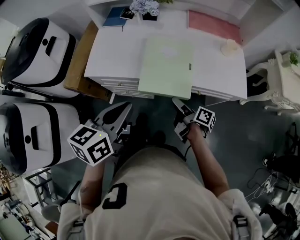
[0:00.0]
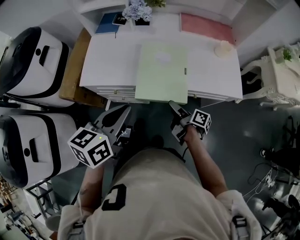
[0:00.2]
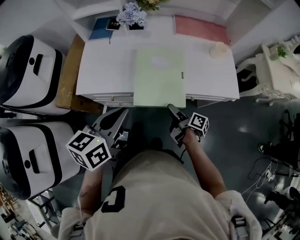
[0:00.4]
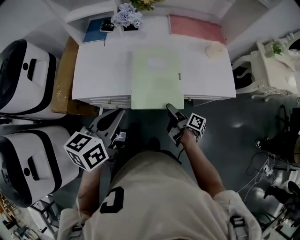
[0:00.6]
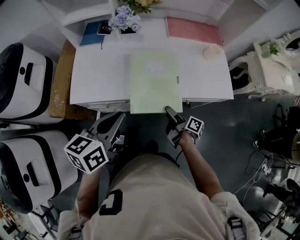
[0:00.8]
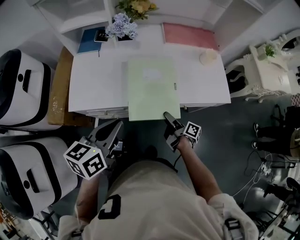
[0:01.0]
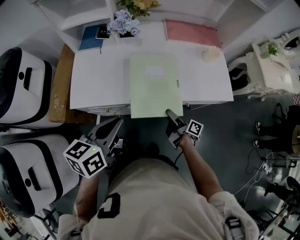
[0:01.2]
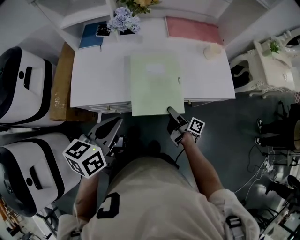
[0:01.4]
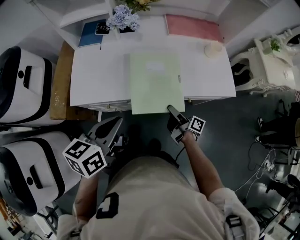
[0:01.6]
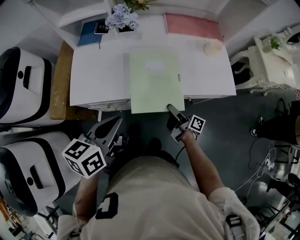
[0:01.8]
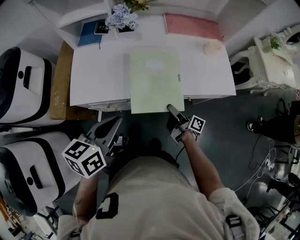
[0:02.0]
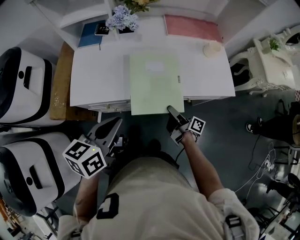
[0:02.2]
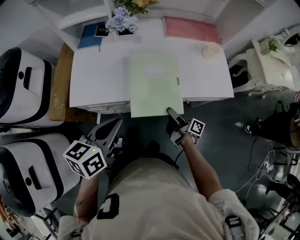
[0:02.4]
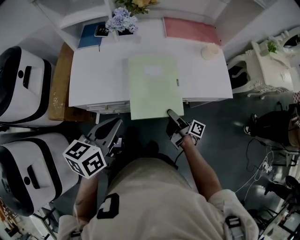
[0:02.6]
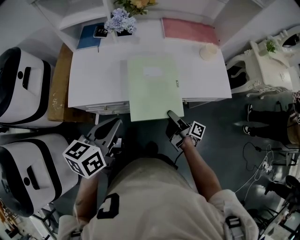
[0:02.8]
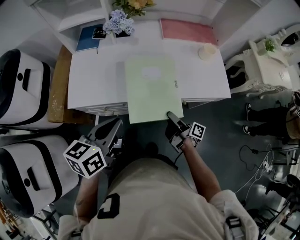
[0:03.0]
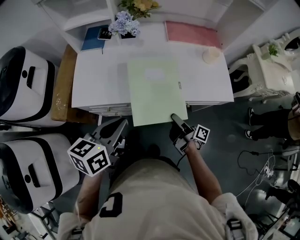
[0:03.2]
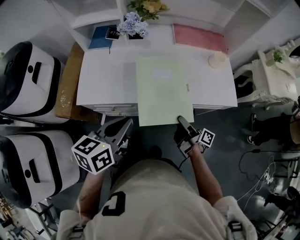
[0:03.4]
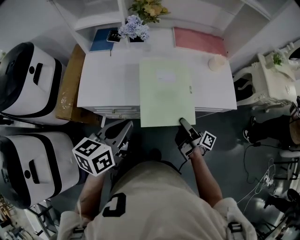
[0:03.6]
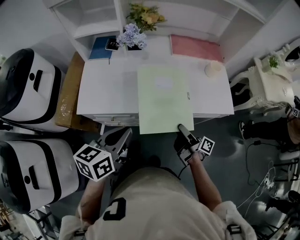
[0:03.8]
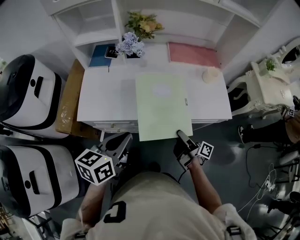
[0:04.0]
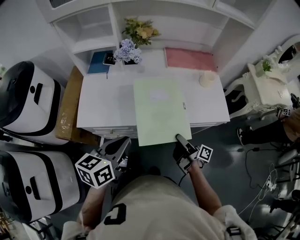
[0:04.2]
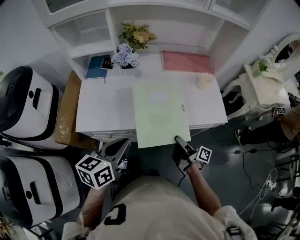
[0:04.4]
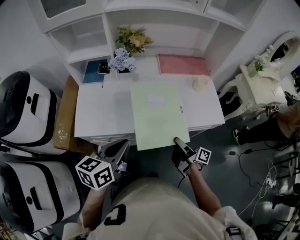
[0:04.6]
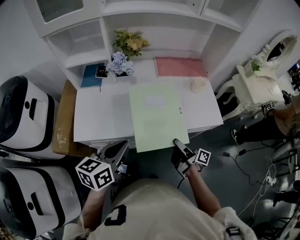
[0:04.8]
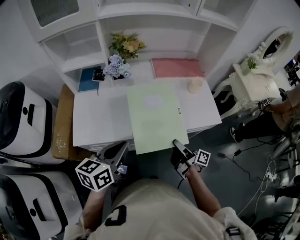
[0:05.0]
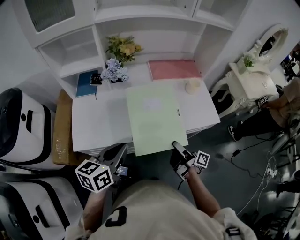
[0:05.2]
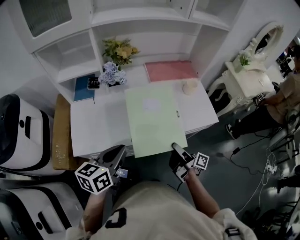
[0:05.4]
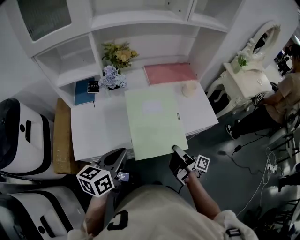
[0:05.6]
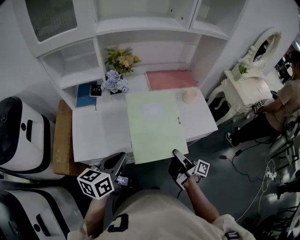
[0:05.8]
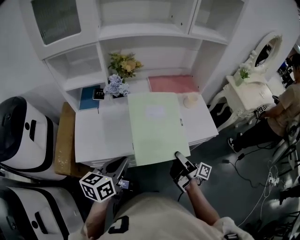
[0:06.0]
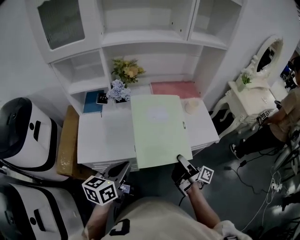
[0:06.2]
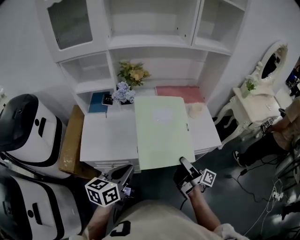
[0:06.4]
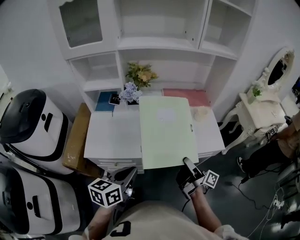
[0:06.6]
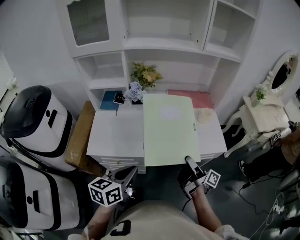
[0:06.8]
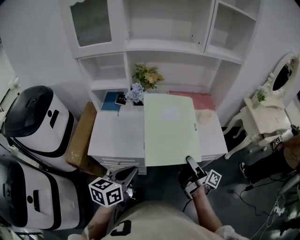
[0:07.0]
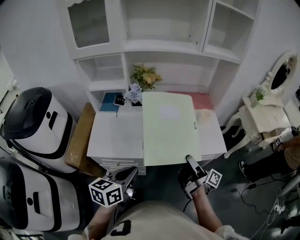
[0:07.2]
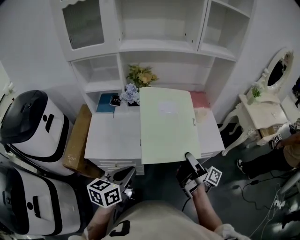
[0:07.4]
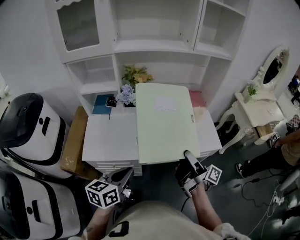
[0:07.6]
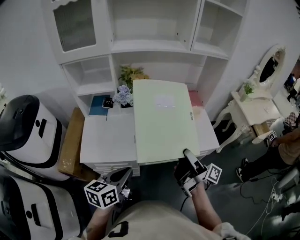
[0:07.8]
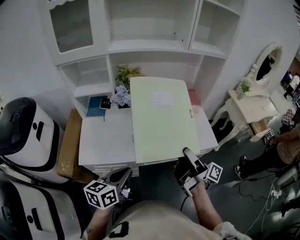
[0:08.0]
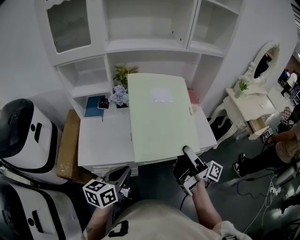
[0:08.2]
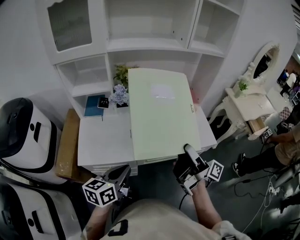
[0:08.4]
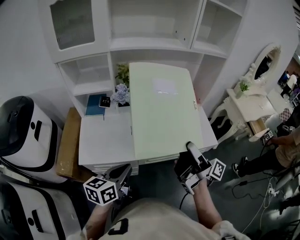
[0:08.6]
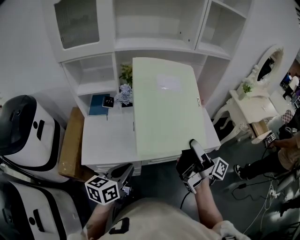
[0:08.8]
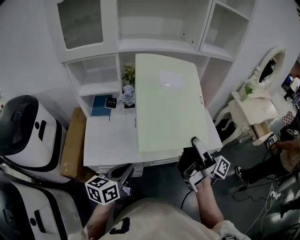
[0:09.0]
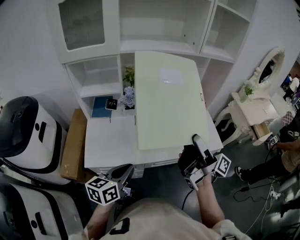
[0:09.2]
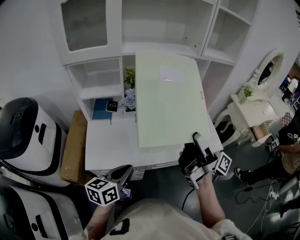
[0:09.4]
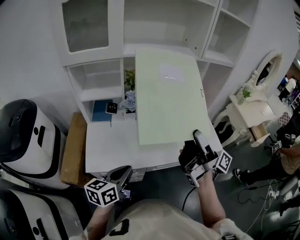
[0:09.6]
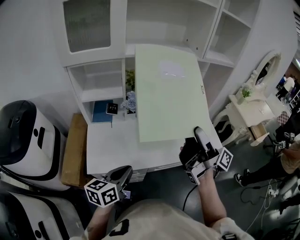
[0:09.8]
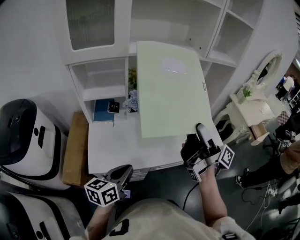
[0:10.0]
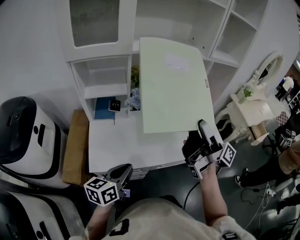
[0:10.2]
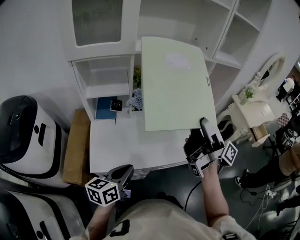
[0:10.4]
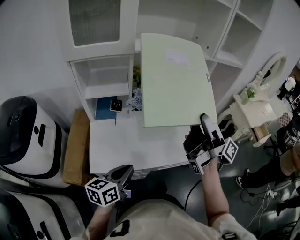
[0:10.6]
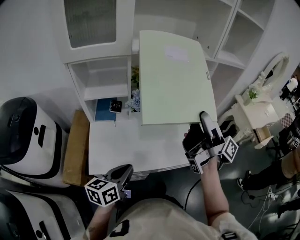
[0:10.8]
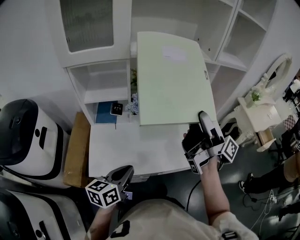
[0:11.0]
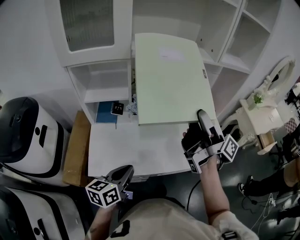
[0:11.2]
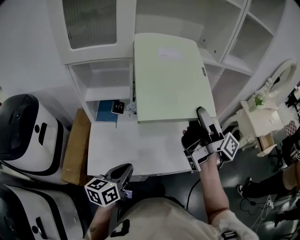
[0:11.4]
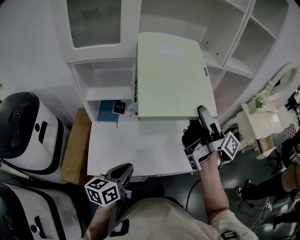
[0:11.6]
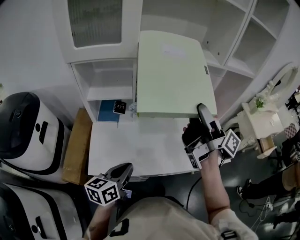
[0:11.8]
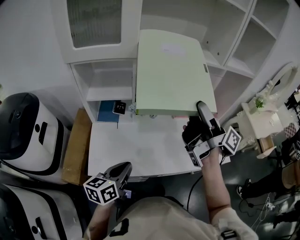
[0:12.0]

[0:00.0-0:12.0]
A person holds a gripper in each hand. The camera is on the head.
0:00.0 to 0:01.6: The right gripper ends up approximately 5 cm from where it was. The left gripper heads forward, covering about 5 cm.
0:01.6 to 0:03.0: The grippers stay close to where they were, moving slightly.
0:03.0 to 0:04.4: The right gripper moves upward, some 5 cm.
0:04.4 to 0:06.0: The right gripper travels upward by approximately 10 cm.
0:06.0 to 0:07.6: The right gripper shifts roughly 10 cm upward.
0:07.6 to 0:09.0: The left gripper changes place by approximately 5 cm, while the right gripper moves upward, about 10 cm.
0:09.0 to 0:10.4: The left gripper heads to the left, covering approximately 10 cm, while the right gripper heads forward, to the left and upward, covering roughly 10 cm.
0:10.4 to 0:12.0: The left gripper travels forward by approximately 5 cm. Meanwhile the right gripper goes about 10 cm forward.

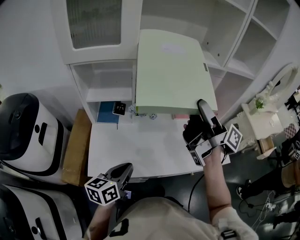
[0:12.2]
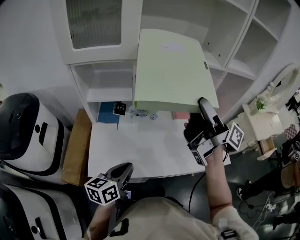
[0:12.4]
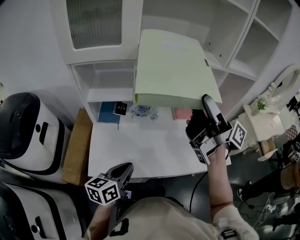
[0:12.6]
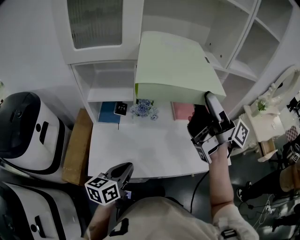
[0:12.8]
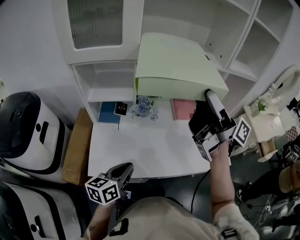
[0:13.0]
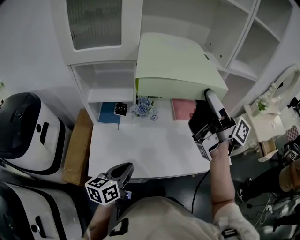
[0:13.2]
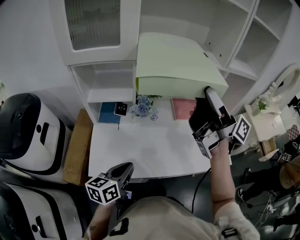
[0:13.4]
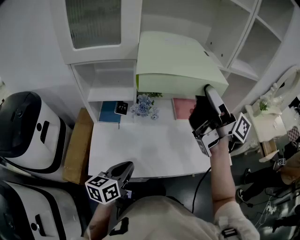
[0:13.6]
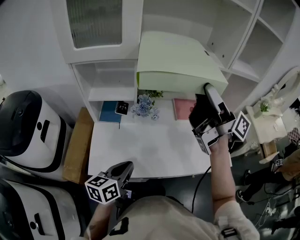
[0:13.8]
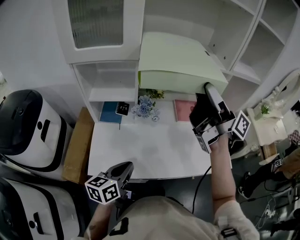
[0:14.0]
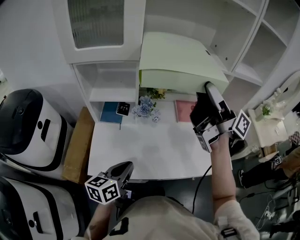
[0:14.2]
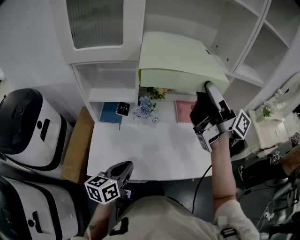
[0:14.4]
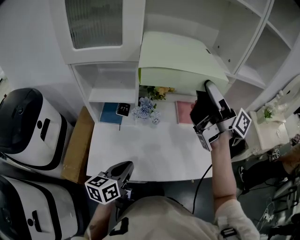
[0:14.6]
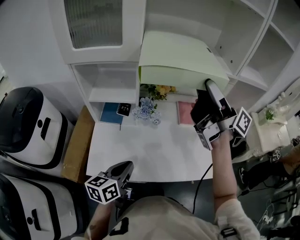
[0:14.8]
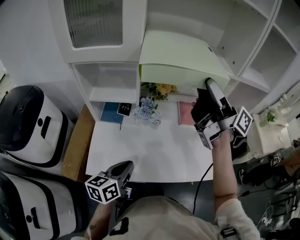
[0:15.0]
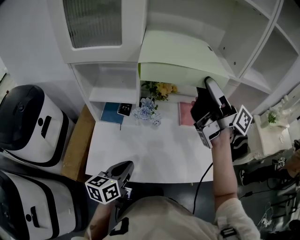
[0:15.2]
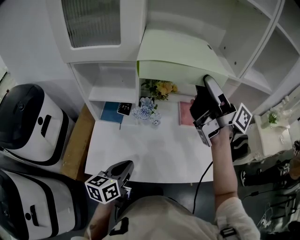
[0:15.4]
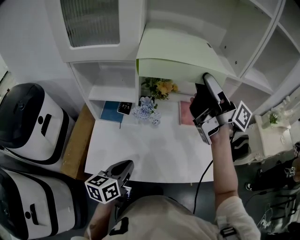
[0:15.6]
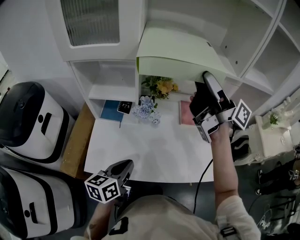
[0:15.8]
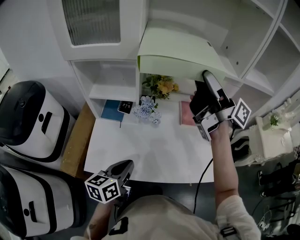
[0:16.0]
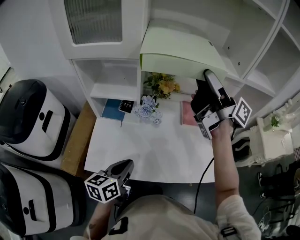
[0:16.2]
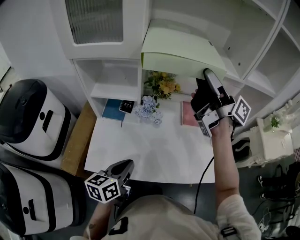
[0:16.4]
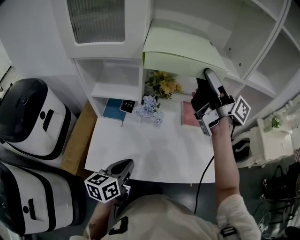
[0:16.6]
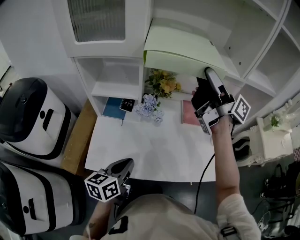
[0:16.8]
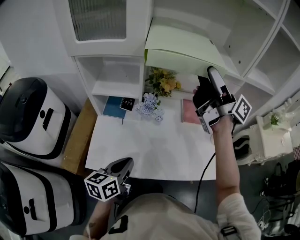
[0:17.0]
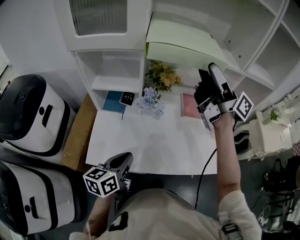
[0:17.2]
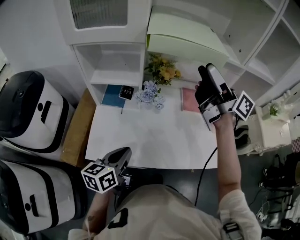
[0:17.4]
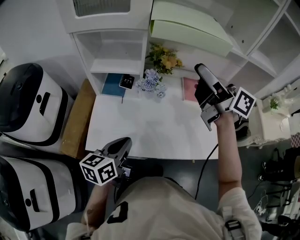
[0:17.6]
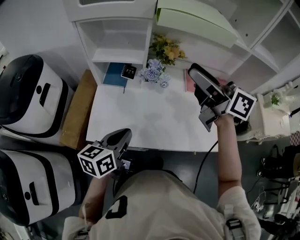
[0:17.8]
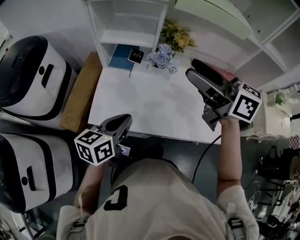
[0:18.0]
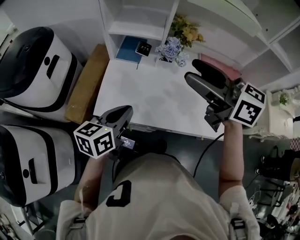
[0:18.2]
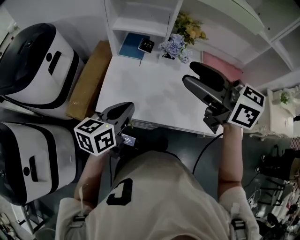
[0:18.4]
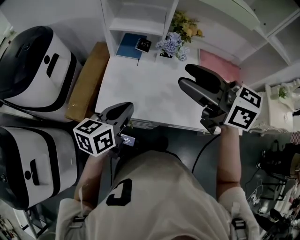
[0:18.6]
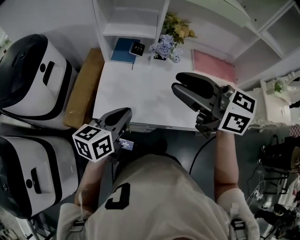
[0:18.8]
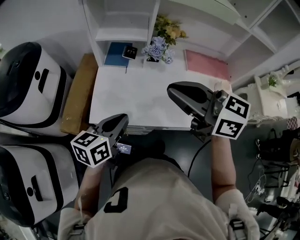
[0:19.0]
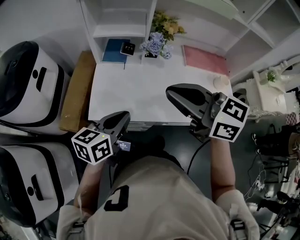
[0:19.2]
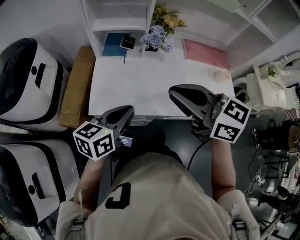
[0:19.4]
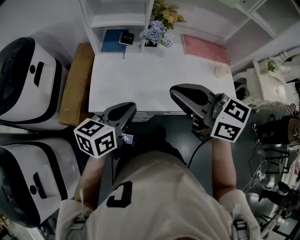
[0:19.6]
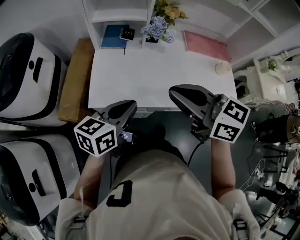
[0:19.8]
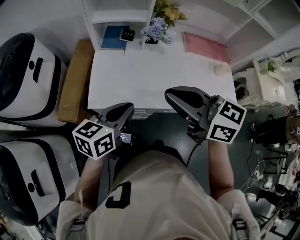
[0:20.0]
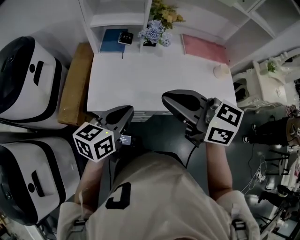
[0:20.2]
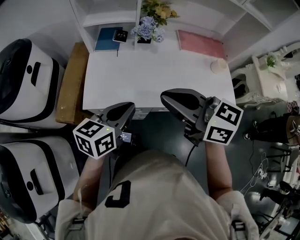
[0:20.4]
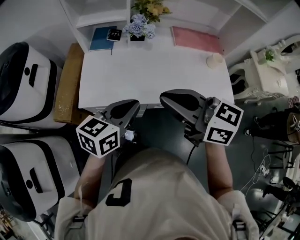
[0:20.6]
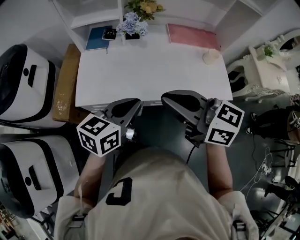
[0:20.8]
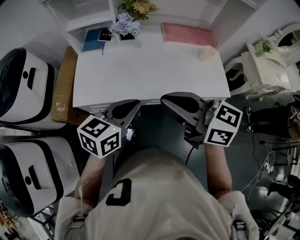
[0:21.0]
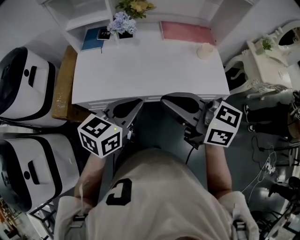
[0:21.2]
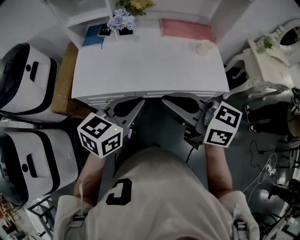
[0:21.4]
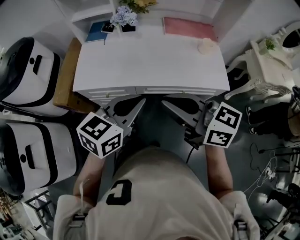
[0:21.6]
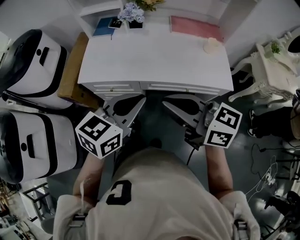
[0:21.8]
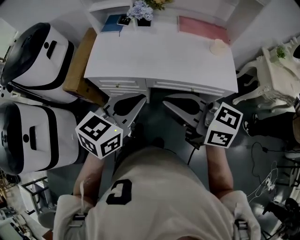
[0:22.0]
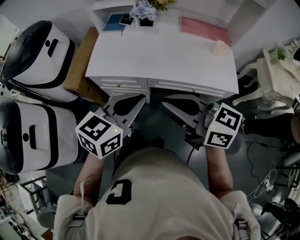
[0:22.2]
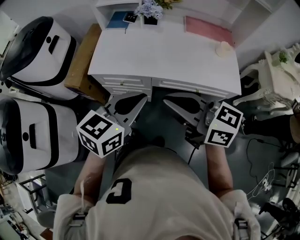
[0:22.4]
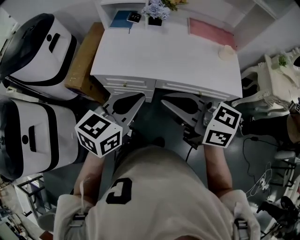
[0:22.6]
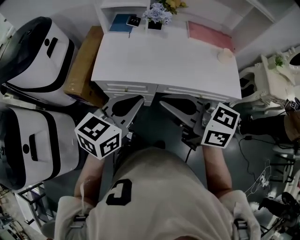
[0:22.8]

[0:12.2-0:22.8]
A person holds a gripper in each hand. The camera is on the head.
0:12.2 to 0:13.8: The right gripper heads upward, covering roughly 5 cm.
0:13.8 to 0:15.2: The right gripper heads forward, covering roughly 10 cm.
0:15.2 to 0:16.8: There are only small adjustments of the grippers.
0:16.8 to 0:18.2: The right gripper goes some 25 cm backward, to the left and downward, and tilts its fingers roughly 30 degrees downward. Meanwhile the left gripper shifts approximately 10 cm to the left.
0:18.2 to 0:19.8: The left gripper heads backward, covering approximately 5 cm. Meanwhile the right gripper travels backward, downward and to the left by roughly 15 cm, and closes up.
0:19.8 to 0:21.2: Both grippers travel together to the right and backward, roughly 20 cm.
0:21.2 to 0:22.8: The grippers both shift to the left by roughly 10 cm.

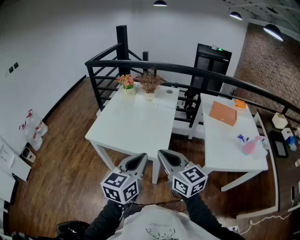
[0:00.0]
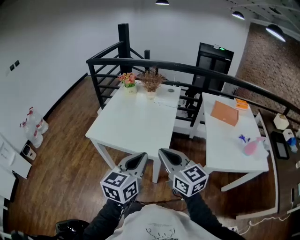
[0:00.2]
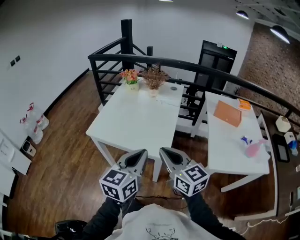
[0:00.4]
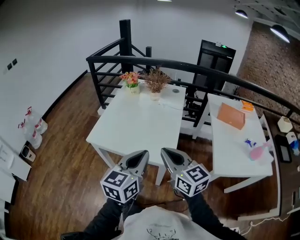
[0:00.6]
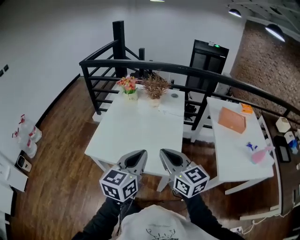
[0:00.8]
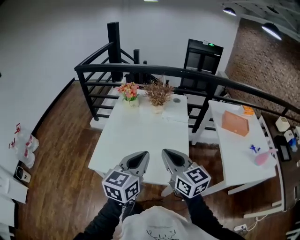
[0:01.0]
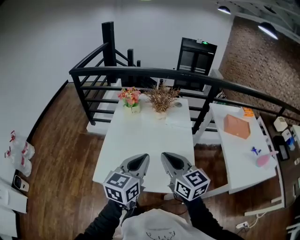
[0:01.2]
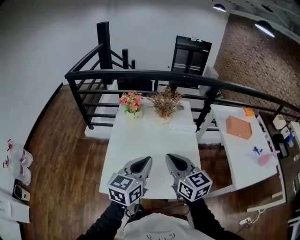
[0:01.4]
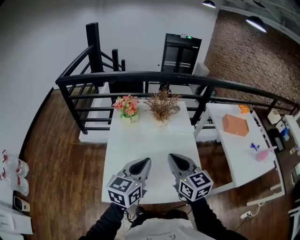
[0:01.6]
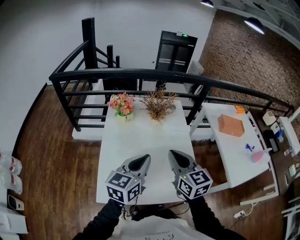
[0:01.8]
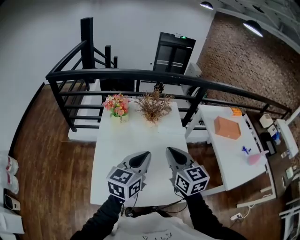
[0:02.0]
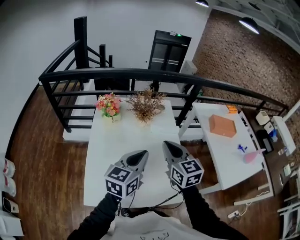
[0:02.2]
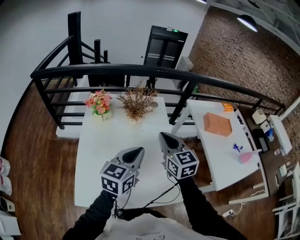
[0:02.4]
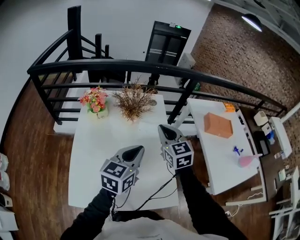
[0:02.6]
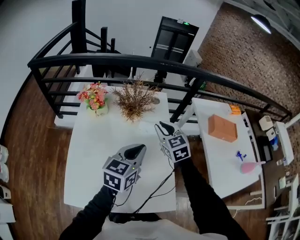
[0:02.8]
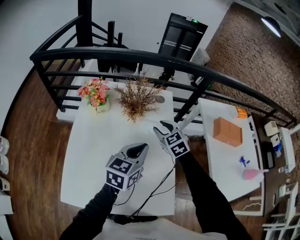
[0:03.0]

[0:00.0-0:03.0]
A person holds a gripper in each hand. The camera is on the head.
0:00.0 to 0:01.6: The two grippers travel together, forward and to the left, some 60 cm. The right gripper turns by about 30 degrees.
0:01.6 to 0:03.0: The left gripper heads forward and to the right, covering roughly 35 cm; the right gripper moves forward and downward, approximately 40 cm, changes its angle by some 40 degrees, and opens up.
